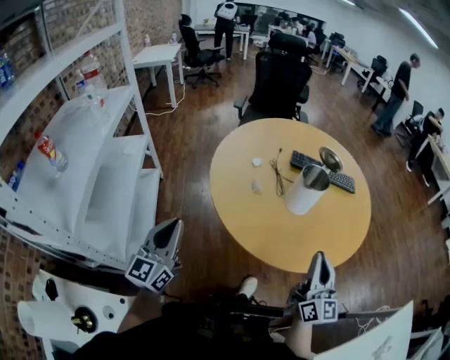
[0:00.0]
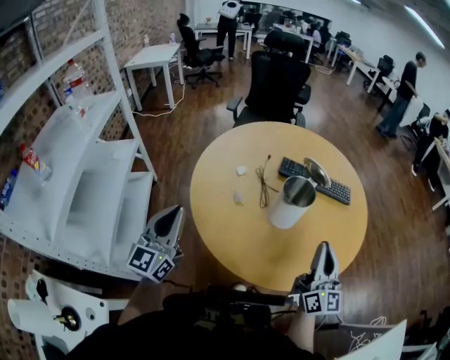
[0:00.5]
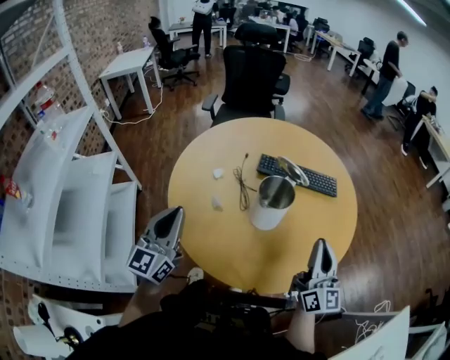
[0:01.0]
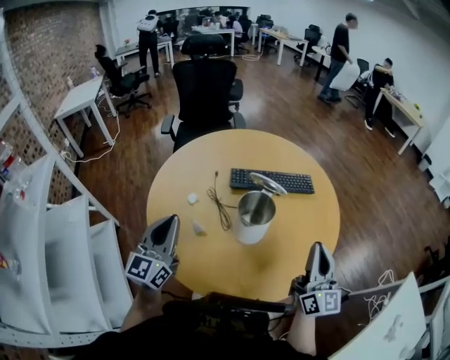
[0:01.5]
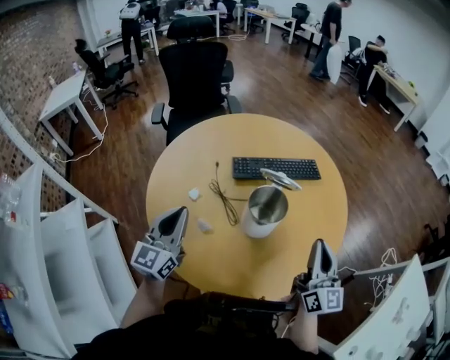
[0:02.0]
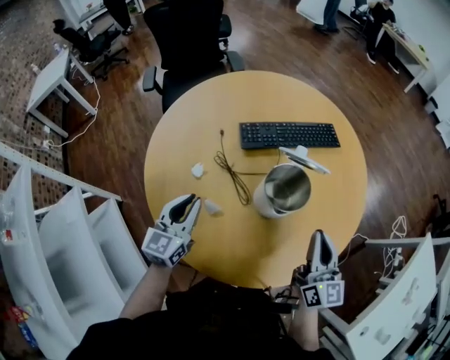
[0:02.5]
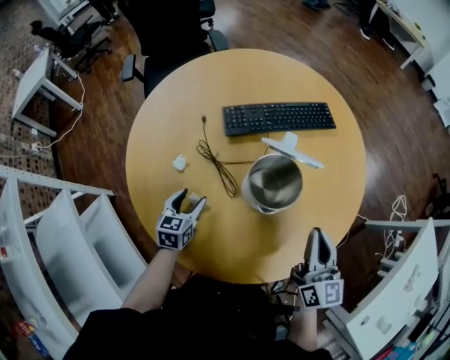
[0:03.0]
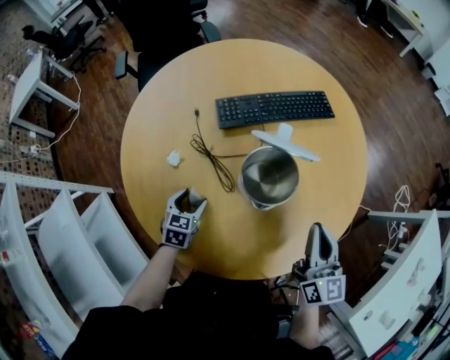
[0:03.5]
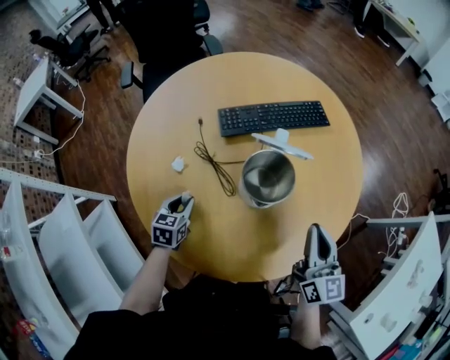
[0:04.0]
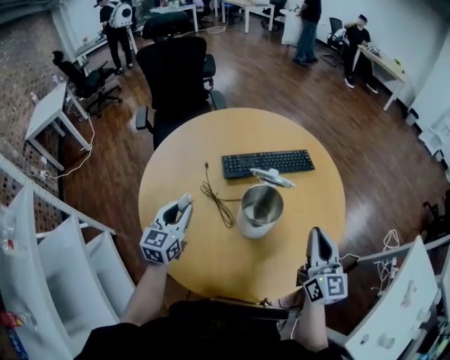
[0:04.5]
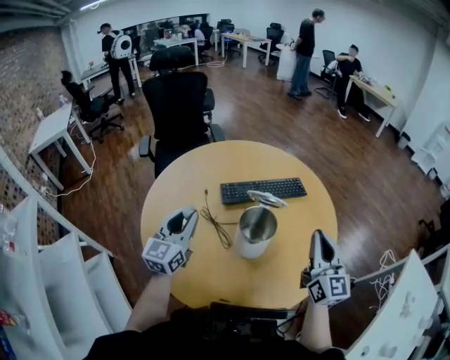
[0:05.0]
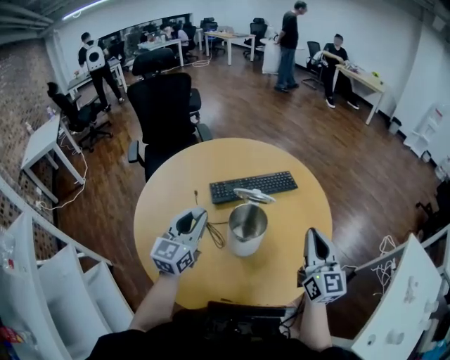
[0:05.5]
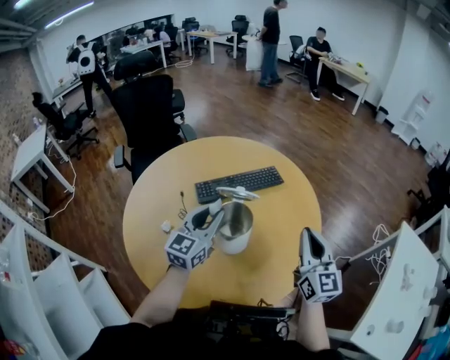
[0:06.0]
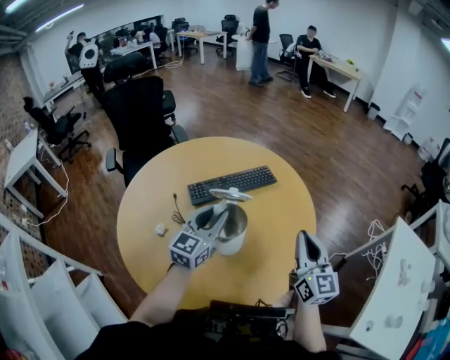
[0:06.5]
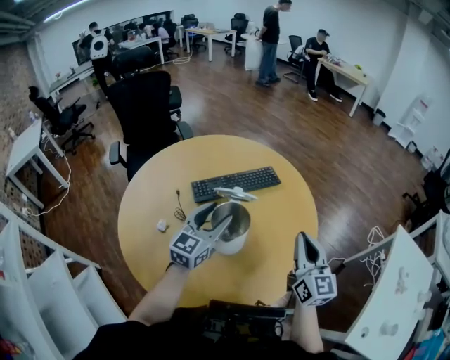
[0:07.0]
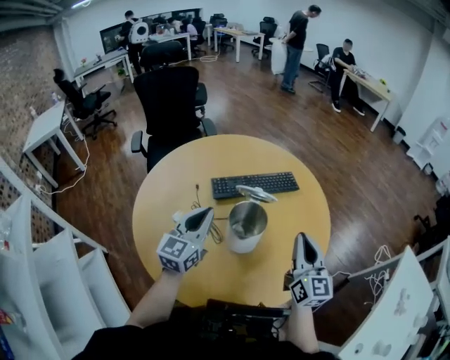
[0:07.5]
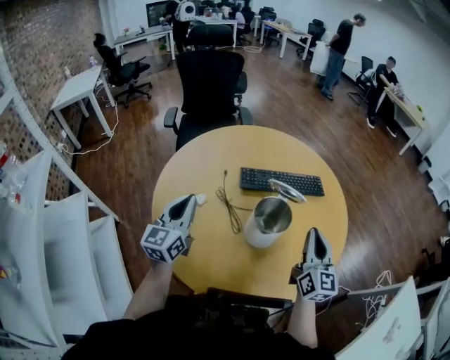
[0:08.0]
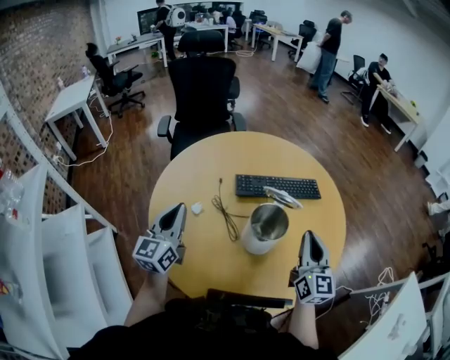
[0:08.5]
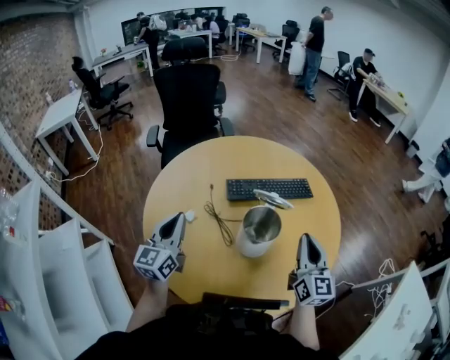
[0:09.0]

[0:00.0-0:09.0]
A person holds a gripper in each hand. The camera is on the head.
0:00.0 to 0:02.0: The left gripper travels forward by about 35 cm, and swivels approximately 30 degrees; the right gripper heads forward and to the right, covering about 20 cm, and swivels about 20 degrees.
0:02.0 to 0:04.5: The right gripper reaches some 10 cm downward, then returns, while the left gripper shifts about 5 cm forward, travels downward and back again, approximately 30 cm each way, and opens and closes again.
0:04.5 to 0:07.0: The right gripper shifts by roughly 5 cm. The left gripper travels to the right by roughly 20 cm, turns by roughly 30 degrees, and opens up.
0:07.0 to 0:09.0: The right gripper heads to the left, covering roughly 5 cm, while the left gripper moves to the left, approximately 20 cm, changes its angle by some 30 degrees, and closes its fingers.

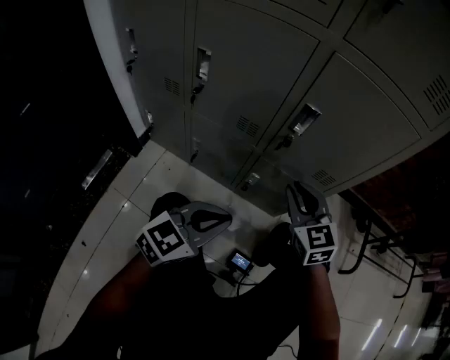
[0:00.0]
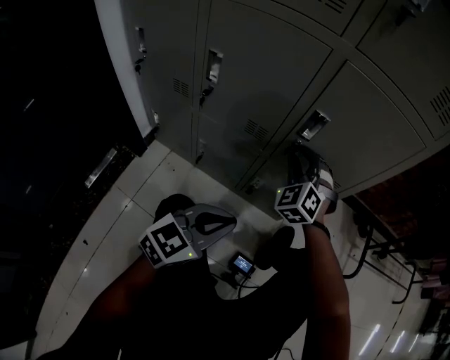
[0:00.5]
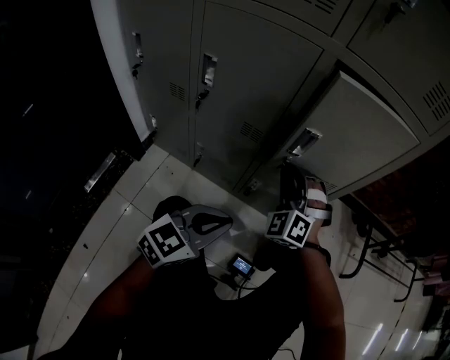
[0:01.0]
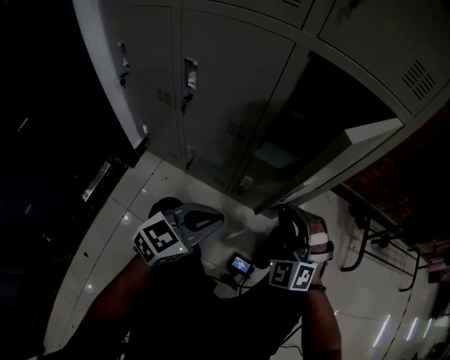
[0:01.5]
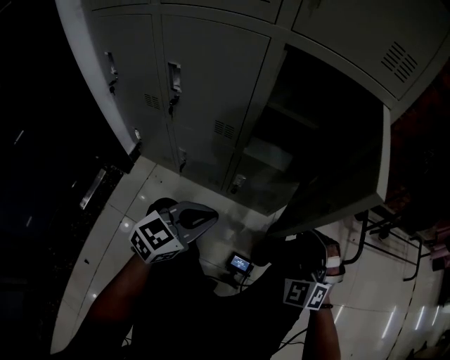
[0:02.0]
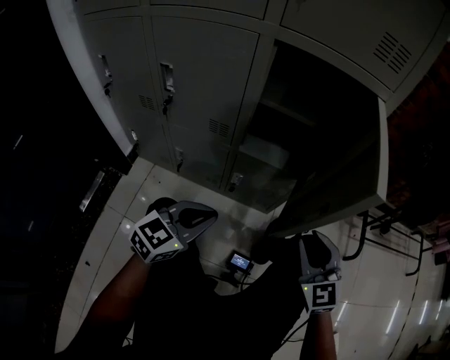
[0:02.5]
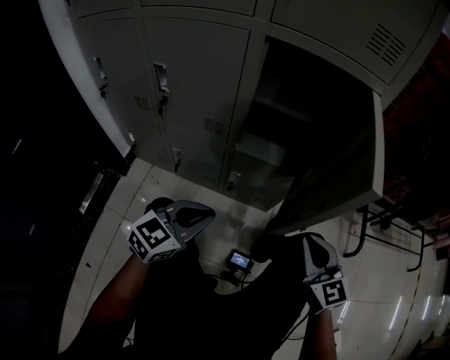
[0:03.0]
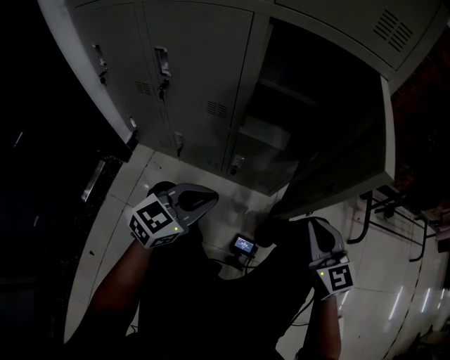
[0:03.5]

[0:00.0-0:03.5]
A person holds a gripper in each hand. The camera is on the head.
0:00.0 to 0:02.0: The right gripper heads to the right and backward, covering about 15 cm, and rolls counterclockwise, seen from behind, by roughly 40 degrees.
0:02.0 to 0:03.5: The right gripper rotates around the line of its fingers by some 50 degrees, clockwise from behind.

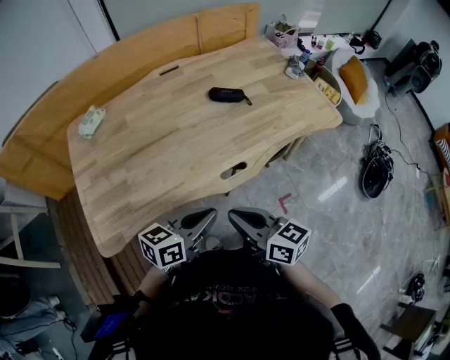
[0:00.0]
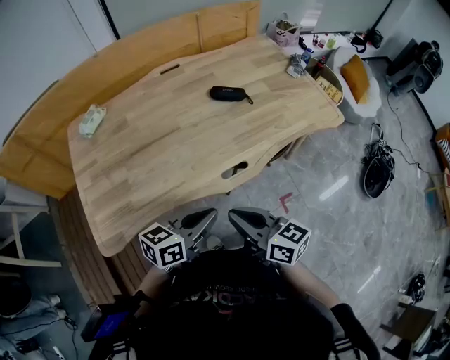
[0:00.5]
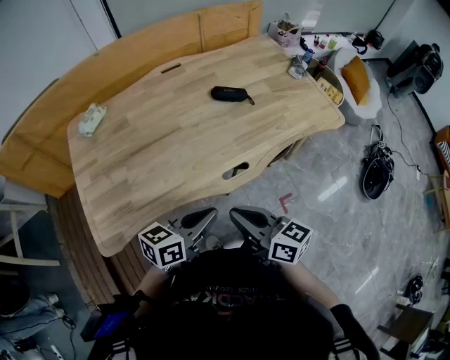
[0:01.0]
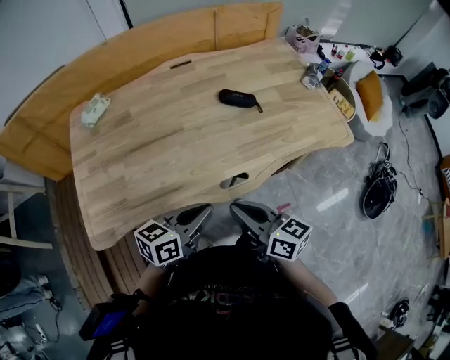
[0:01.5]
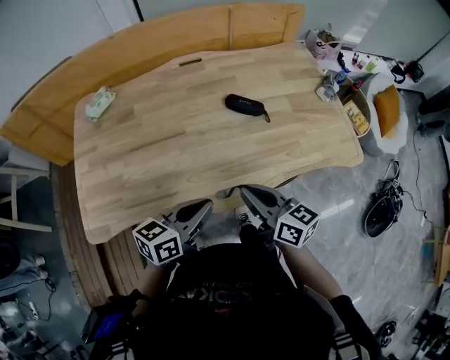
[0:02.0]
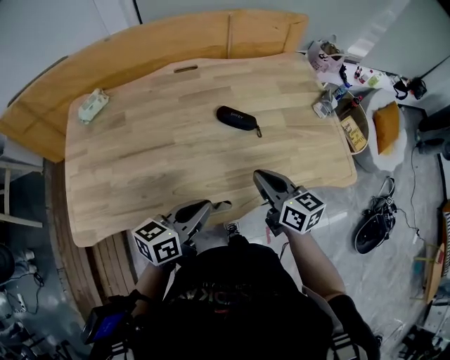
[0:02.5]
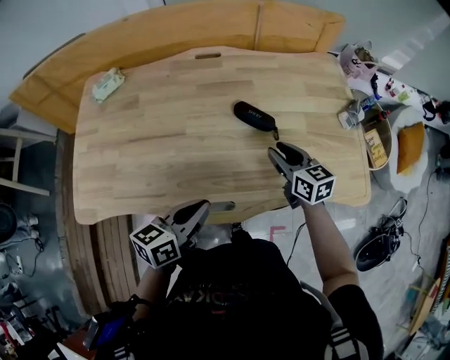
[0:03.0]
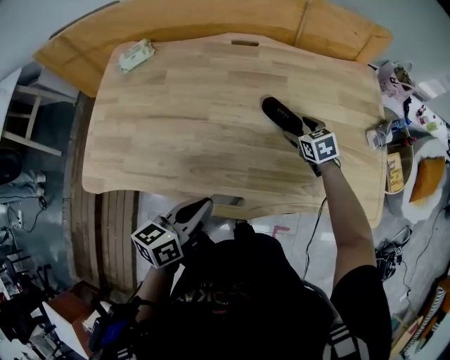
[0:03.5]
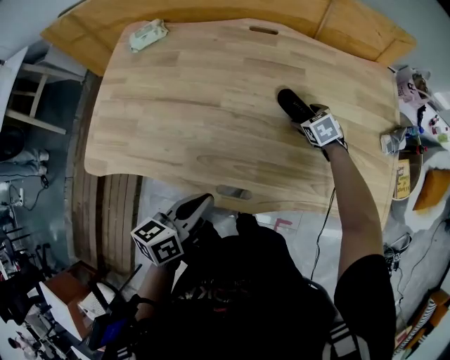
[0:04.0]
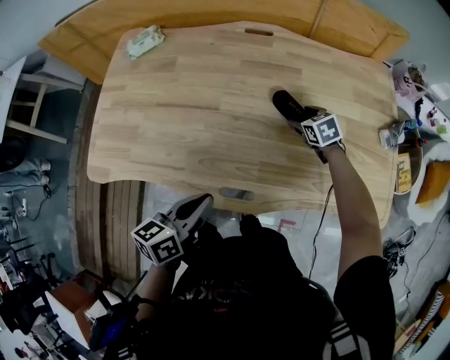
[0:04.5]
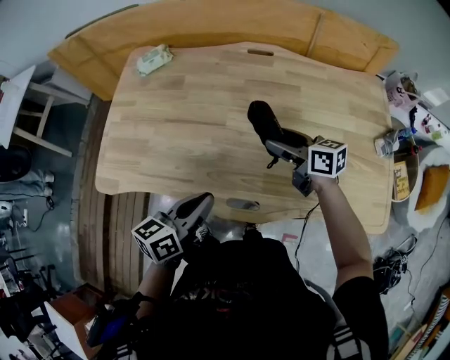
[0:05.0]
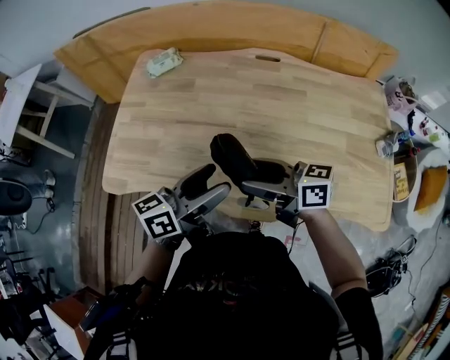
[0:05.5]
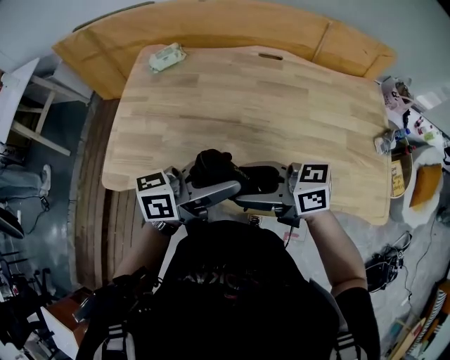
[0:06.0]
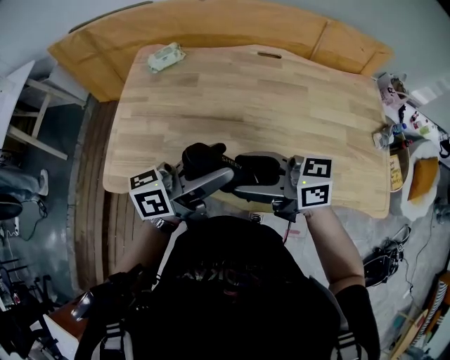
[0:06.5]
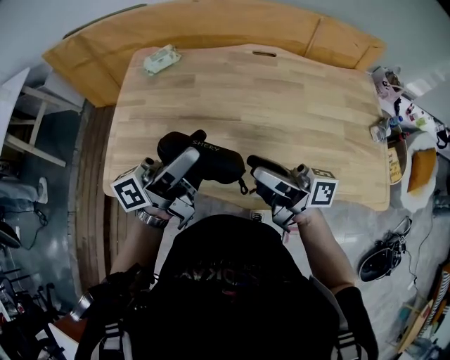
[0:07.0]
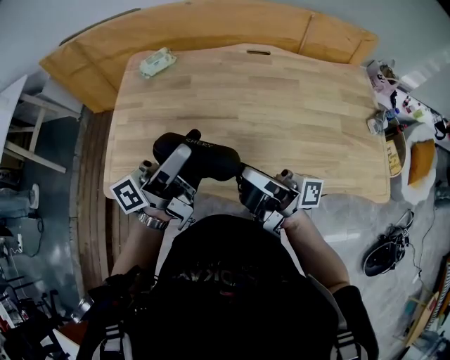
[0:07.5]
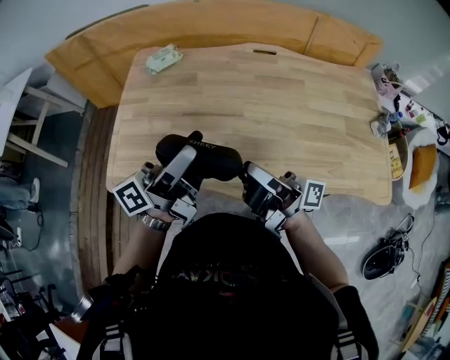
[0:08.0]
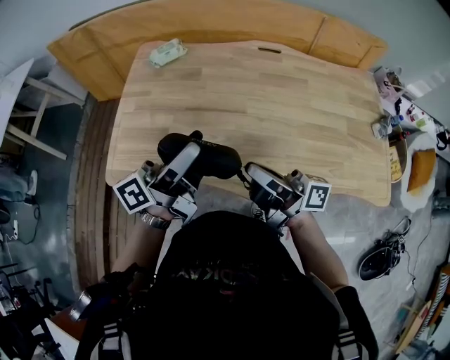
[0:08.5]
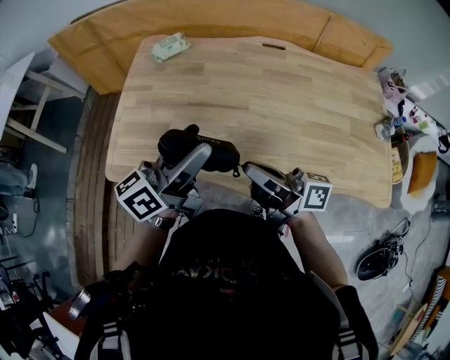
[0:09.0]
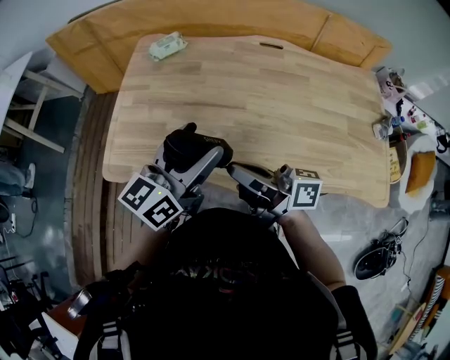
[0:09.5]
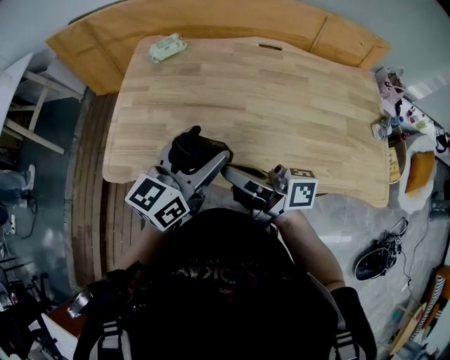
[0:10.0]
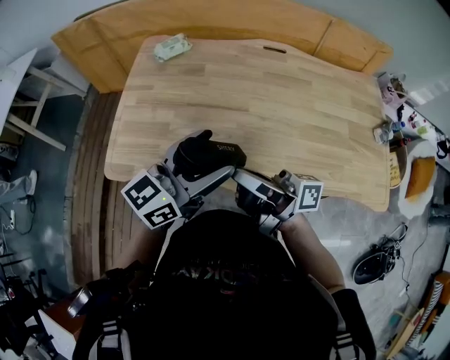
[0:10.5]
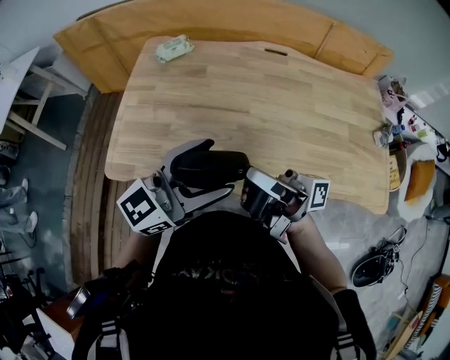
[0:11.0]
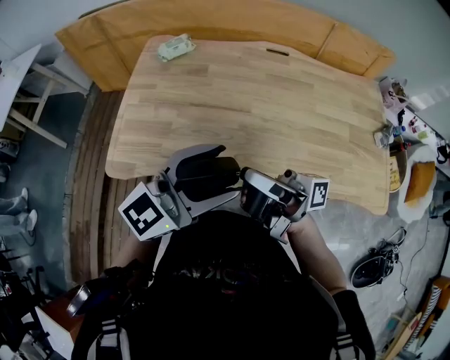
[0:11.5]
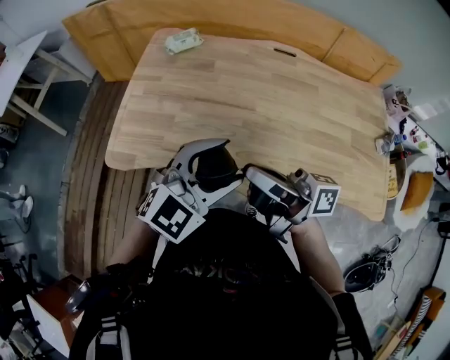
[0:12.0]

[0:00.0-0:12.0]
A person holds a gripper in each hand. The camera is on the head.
0:00.0 to 0:02.0: The left gripper moves forward, roughly 10 cm. Meanwhile the right gripper heads forward and to the right, covering roughly 15 cm.
0:02.0 to 0:04.0: The left gripper turns by approximately 30 degrees, while the right gripper moves forward and downward, some 40 cm, tilts its fingers some 50 degrees downward, and opens.
0:04.0 to 0:06.0: The left gripper heads upward, covering approximately 15 cm, swivels some 40 degrees, and opens up; the right gripper shifts by approximately 50 cm, and tips its fingers upward by about 60 degrees.
0:06.0 to 0:08.0: The left gripper shifts by approximately 10 cm, and swivels about 30 degrees. The right gripper tilts its fingers about 40 degrees upward, and closes.
0:08.0 to 0:10.0: The right gripper is displaced to the left by approximately 5 cm, and swivels roughly 20 degrees. Meanwhile the left gripper rolls clockwise, seen from behind, by some 40 degrees.
0:10.0 to 0:12.0: The right gripper shifts by roughly 5 cm. The left gripper goes approximately 5 cm backward, and rolls clockwise, seen from behind, by some 40 degrees.

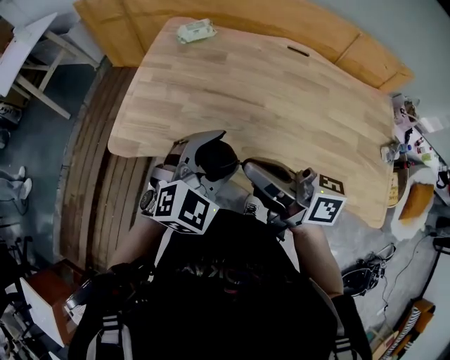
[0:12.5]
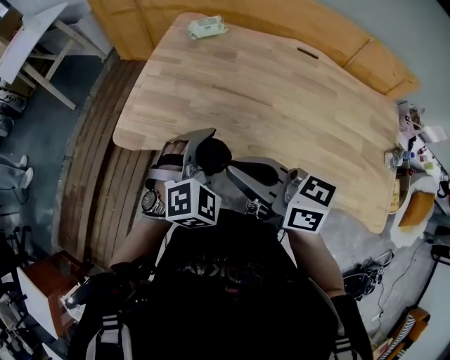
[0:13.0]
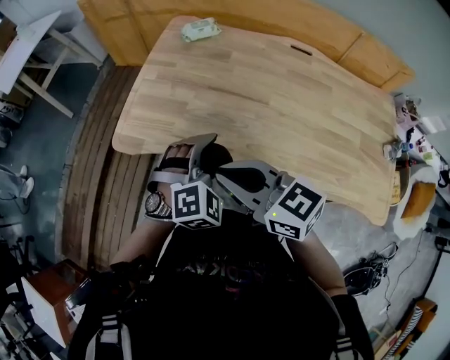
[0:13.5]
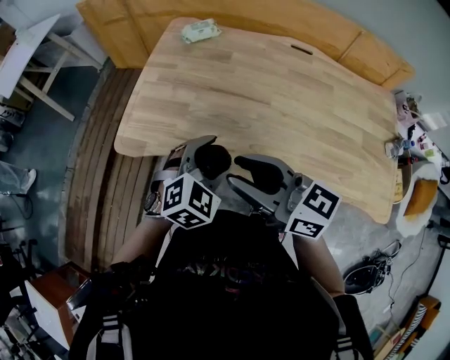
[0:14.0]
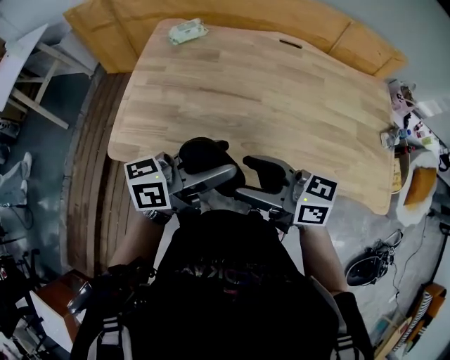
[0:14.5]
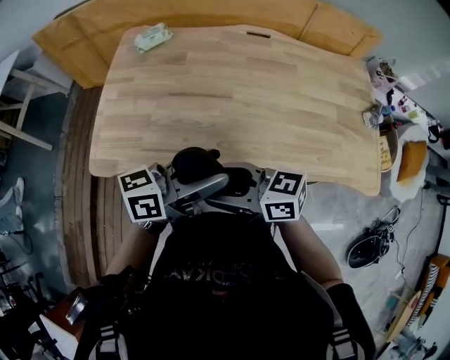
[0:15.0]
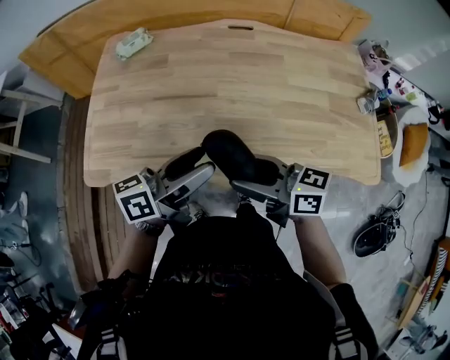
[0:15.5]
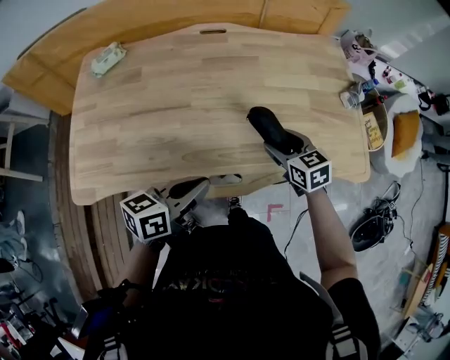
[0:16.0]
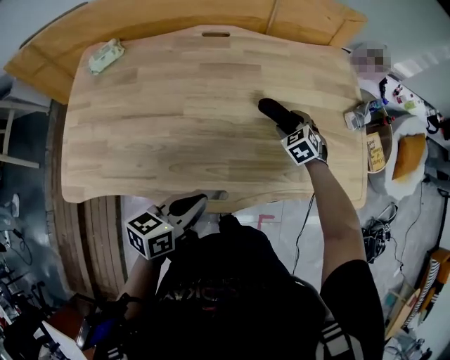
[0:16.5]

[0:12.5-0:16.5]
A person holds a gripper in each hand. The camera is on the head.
0:12.5 to 0:14.5: The left gripper rotates around the line of its fingers by about 70 degrees, counterclockwise from behind; the right gripper shifts by roughly 5 cm, and opens.
0:14.5 to 0:16.5: The right gripper changes place by roughly 50 cm, and angles its fingers downward, by approximately 50 degrees, while the left gripper changes place by some 20 cm, swivels about 30 degrees, and closes up.
